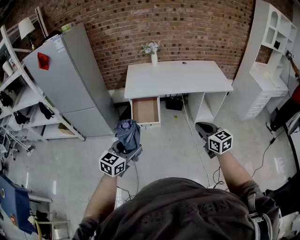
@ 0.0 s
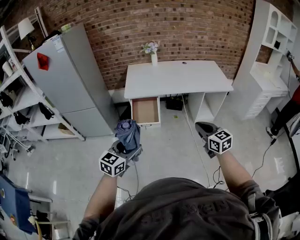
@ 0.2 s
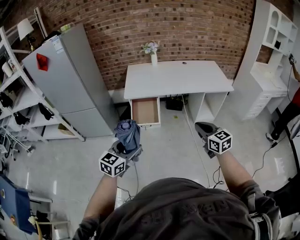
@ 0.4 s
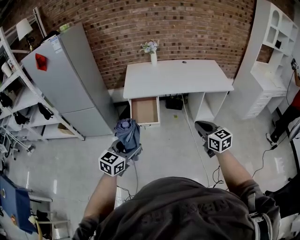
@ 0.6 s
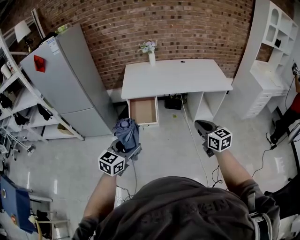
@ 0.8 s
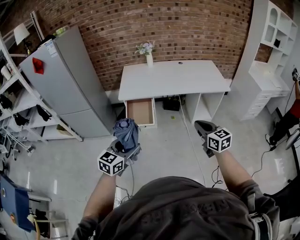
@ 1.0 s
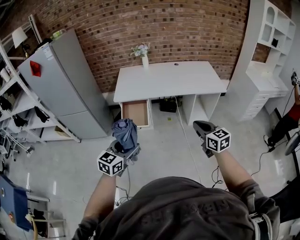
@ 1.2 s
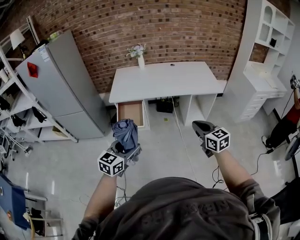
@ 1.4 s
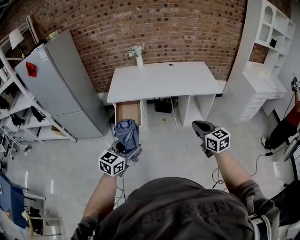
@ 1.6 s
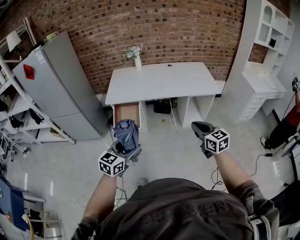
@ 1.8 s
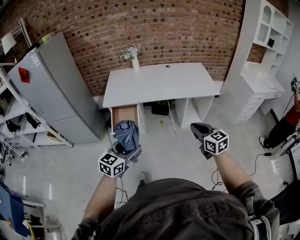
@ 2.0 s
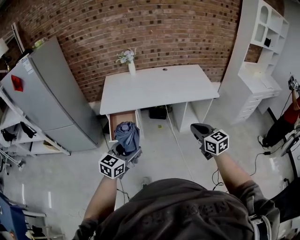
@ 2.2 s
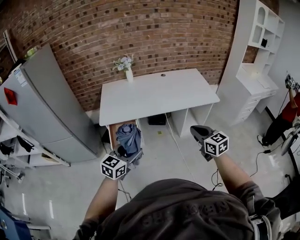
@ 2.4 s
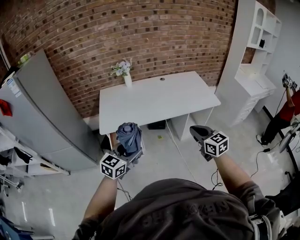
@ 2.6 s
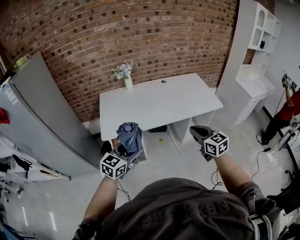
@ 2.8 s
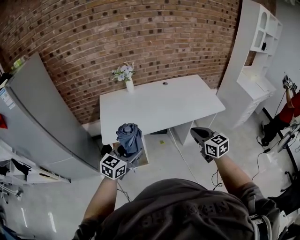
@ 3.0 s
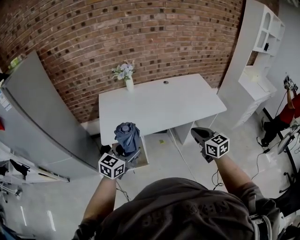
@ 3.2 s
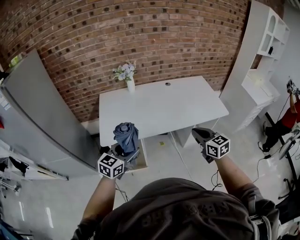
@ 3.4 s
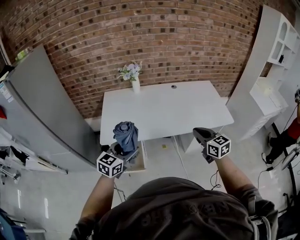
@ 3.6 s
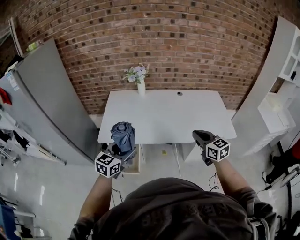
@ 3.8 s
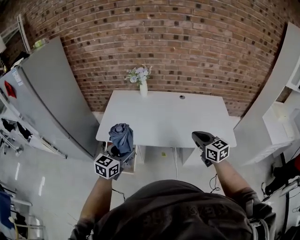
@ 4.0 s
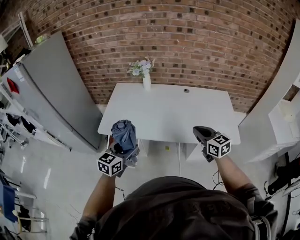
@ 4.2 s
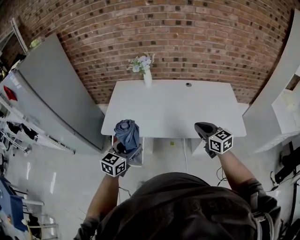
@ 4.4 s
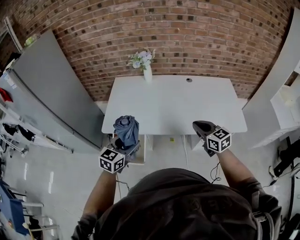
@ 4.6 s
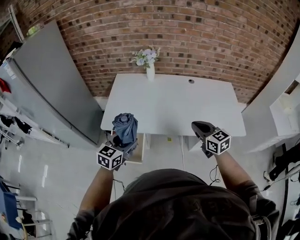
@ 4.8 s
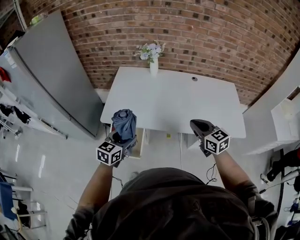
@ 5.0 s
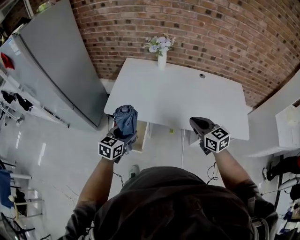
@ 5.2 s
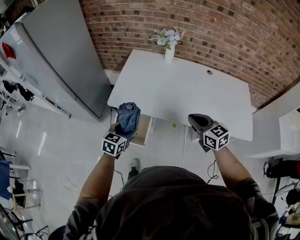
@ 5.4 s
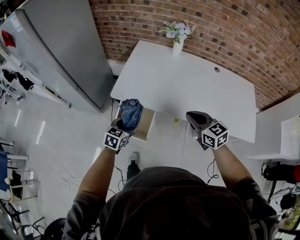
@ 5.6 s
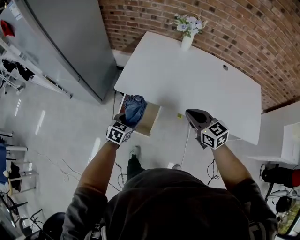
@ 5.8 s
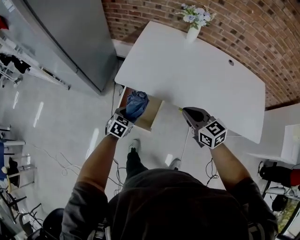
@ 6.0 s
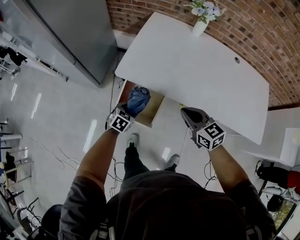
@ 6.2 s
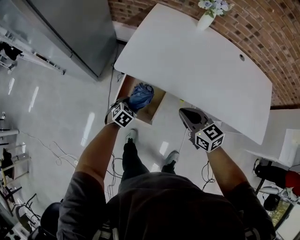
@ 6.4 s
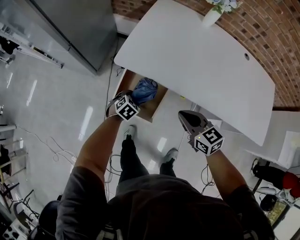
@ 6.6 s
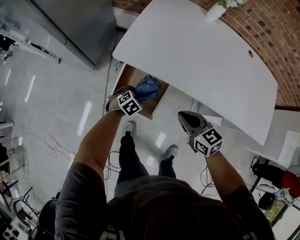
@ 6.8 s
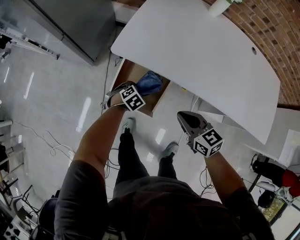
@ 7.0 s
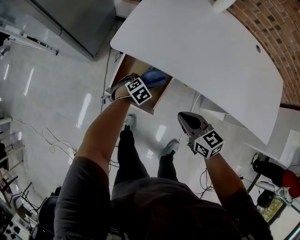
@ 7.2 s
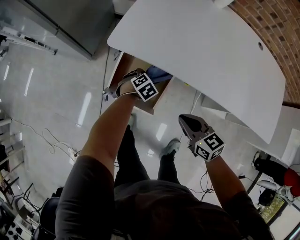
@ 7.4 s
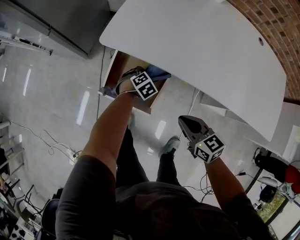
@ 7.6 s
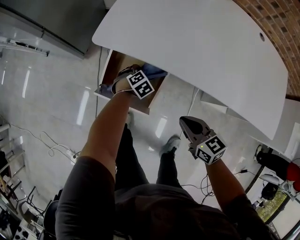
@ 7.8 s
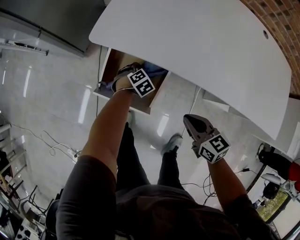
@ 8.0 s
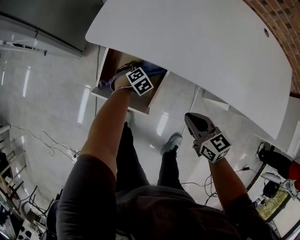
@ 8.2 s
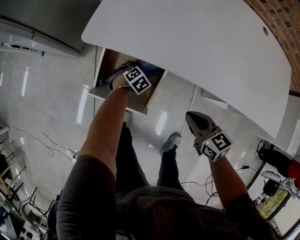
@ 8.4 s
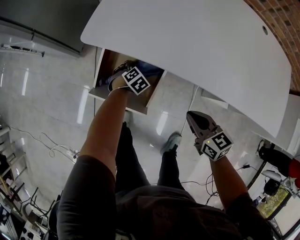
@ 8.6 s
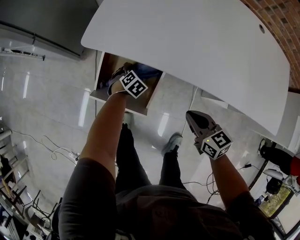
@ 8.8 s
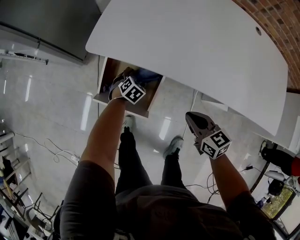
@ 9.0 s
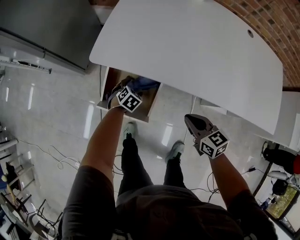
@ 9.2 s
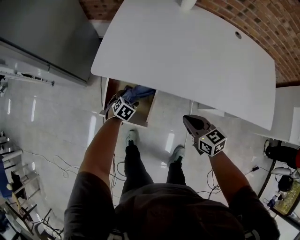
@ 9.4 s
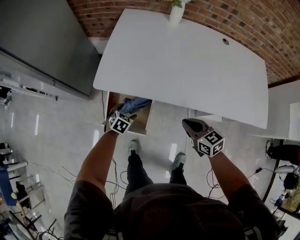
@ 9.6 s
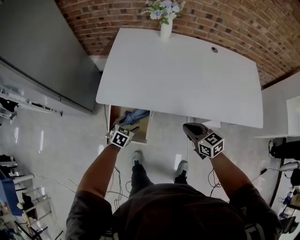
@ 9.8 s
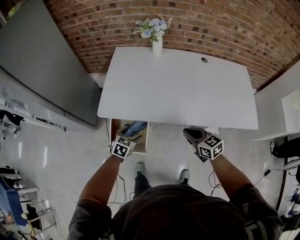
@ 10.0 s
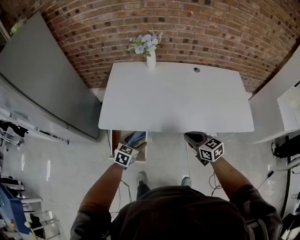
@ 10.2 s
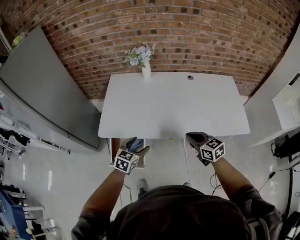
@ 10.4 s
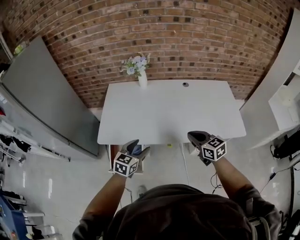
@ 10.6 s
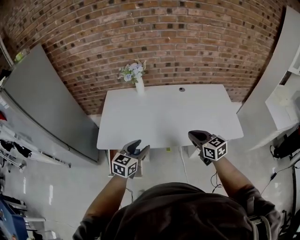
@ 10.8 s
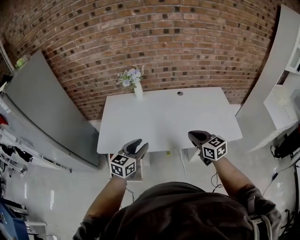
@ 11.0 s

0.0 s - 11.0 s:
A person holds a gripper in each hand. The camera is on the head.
0.0 s - 1.6 s: Both grippers travel together to the right, approximately 20 cm.
1.6 s - 3.2 s: The two grippers go about 35 cm forward and to the left.
3.2 s - 4.8 s: The left gripper moves forward and downward, approximately 10 cm, travels to the right and back again, roughly 15 cm each way, and rotates some 20 degrees, while the right gripper moves forward, about 15 cm, and rotates some 20 degrees.
4.8 s - 6.2 s: The left gripper goes some 35 cm downward and to the left, and points its fingers about 30 degrees further downward. The right gripper heads to the left and downward, covering roughly 25 cm, and changes its angle by about 20 degrees.
6.2 s - 7.8 s: The right gripper moves downward, some 20 cm, while the left gripper travels downward and forward by approximately 25 cm, and changes its angle by roughly 30 degrees.
7.8 s - 9.4 s: The left gripper moves upward, approximately 5 cm. Meanwhile the right gripper shifts about 5 cm to the right.
9.4 s - 11.0 s: The two grippers go about 40 cm upward and to the right. The left gripper points its fingers roughly 50 degrees further upward, and closes. Meanwhile the right gripper turns by some 30 degrees.

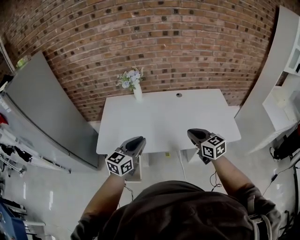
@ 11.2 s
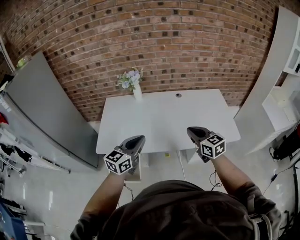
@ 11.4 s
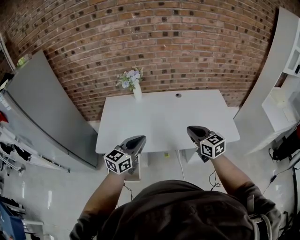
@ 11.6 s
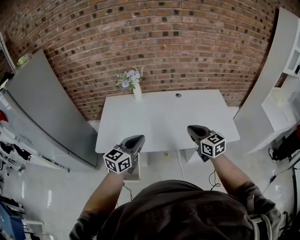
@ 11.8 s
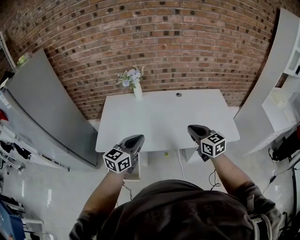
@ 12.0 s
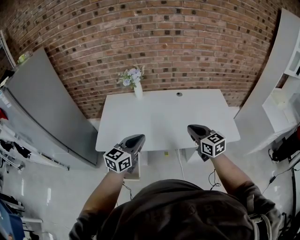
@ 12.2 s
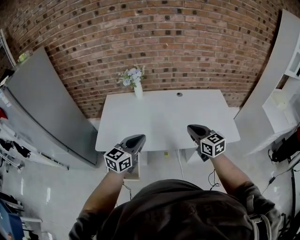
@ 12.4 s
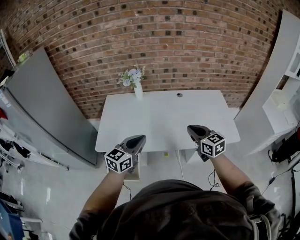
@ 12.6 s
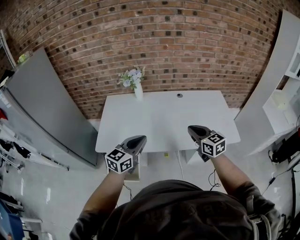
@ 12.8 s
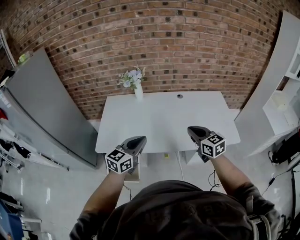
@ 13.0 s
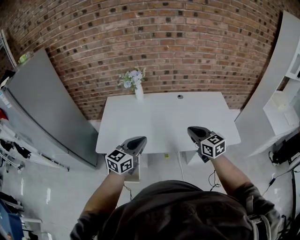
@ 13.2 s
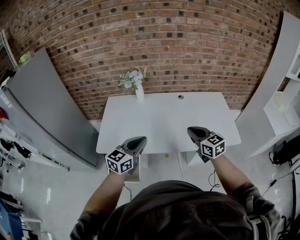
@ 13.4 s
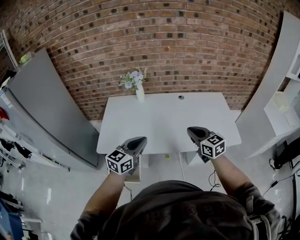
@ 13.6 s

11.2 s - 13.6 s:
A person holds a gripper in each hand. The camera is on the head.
11.2 s - 12.4 s: The grippers stay close to where they were, moving slightly.
12.4 s - 13.6 s: Neither gripper changes place.

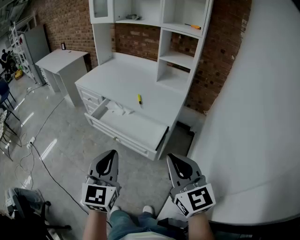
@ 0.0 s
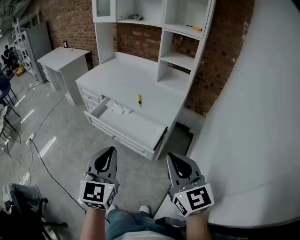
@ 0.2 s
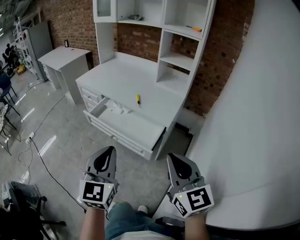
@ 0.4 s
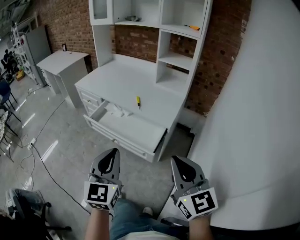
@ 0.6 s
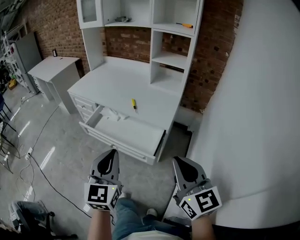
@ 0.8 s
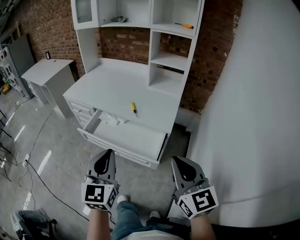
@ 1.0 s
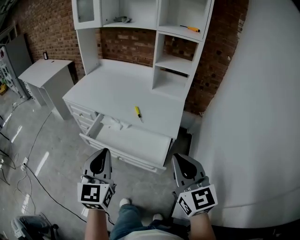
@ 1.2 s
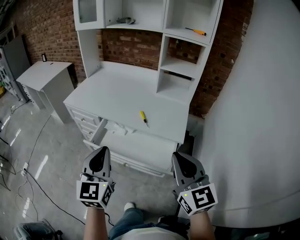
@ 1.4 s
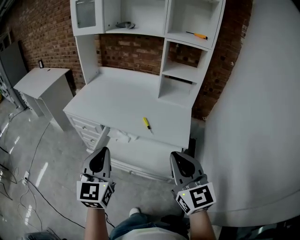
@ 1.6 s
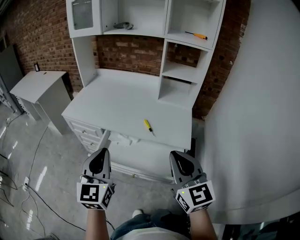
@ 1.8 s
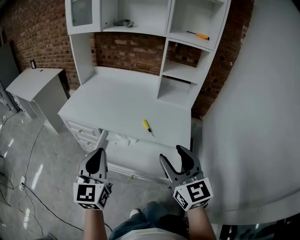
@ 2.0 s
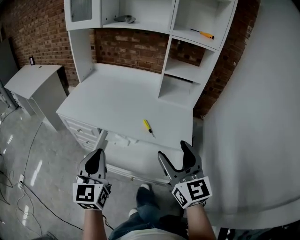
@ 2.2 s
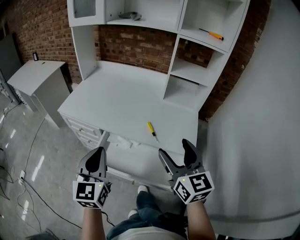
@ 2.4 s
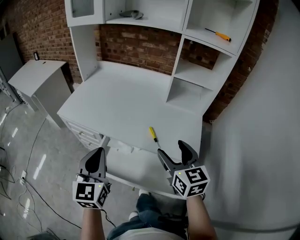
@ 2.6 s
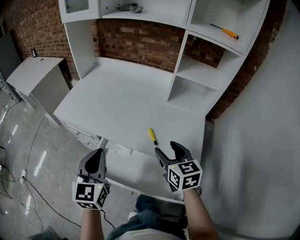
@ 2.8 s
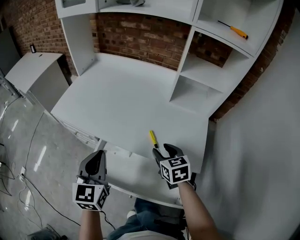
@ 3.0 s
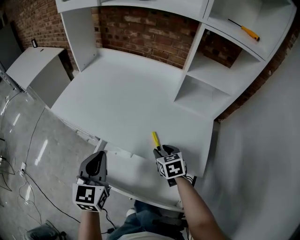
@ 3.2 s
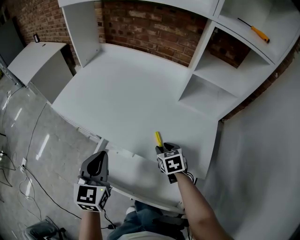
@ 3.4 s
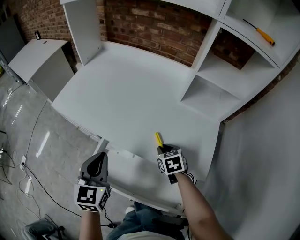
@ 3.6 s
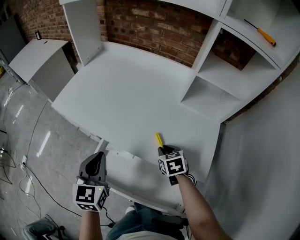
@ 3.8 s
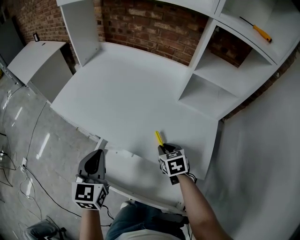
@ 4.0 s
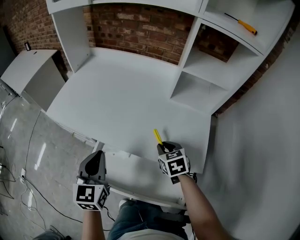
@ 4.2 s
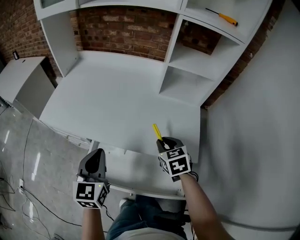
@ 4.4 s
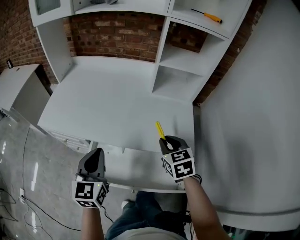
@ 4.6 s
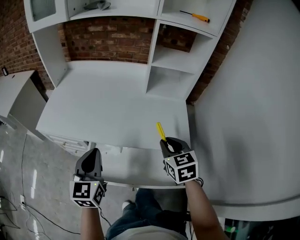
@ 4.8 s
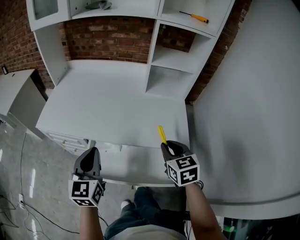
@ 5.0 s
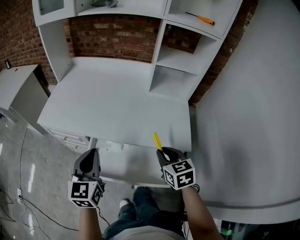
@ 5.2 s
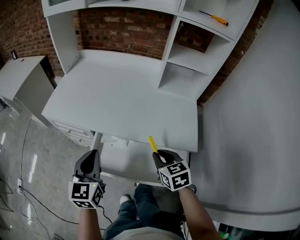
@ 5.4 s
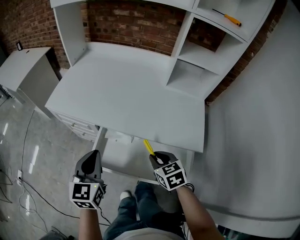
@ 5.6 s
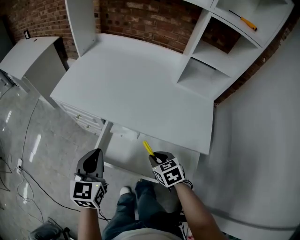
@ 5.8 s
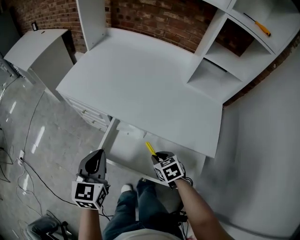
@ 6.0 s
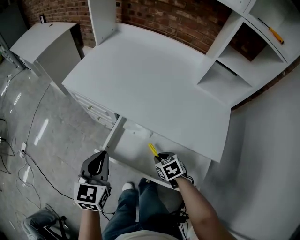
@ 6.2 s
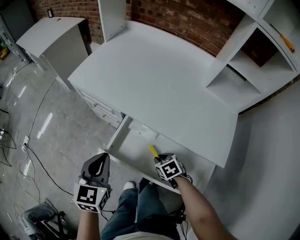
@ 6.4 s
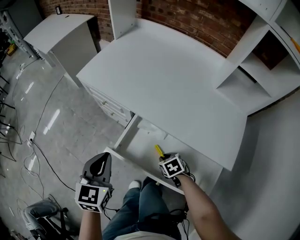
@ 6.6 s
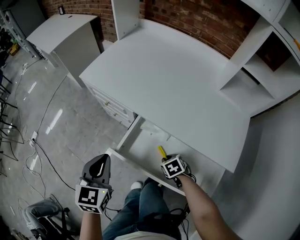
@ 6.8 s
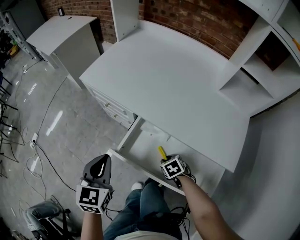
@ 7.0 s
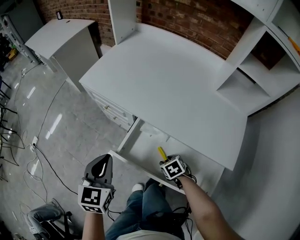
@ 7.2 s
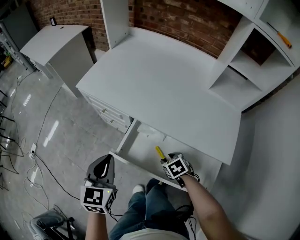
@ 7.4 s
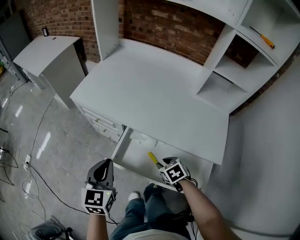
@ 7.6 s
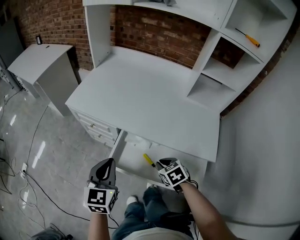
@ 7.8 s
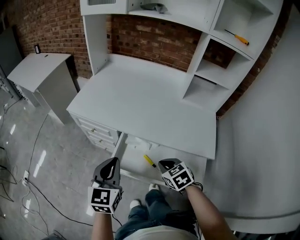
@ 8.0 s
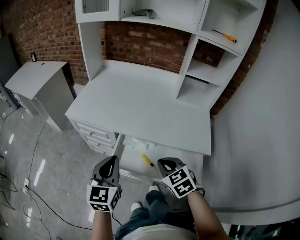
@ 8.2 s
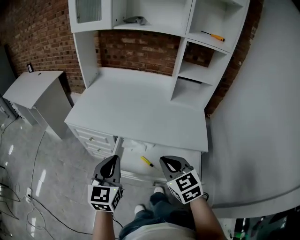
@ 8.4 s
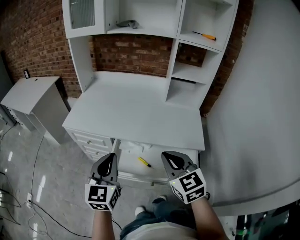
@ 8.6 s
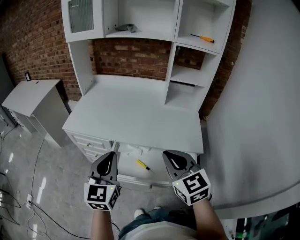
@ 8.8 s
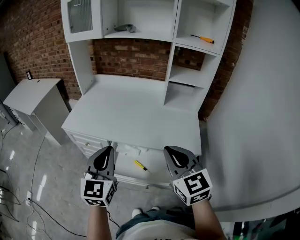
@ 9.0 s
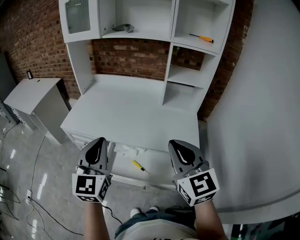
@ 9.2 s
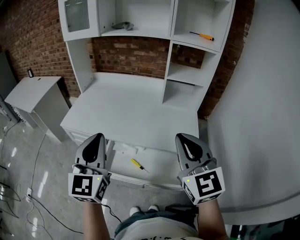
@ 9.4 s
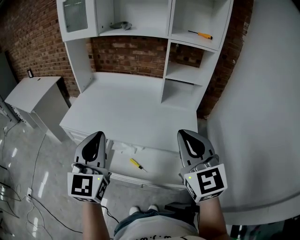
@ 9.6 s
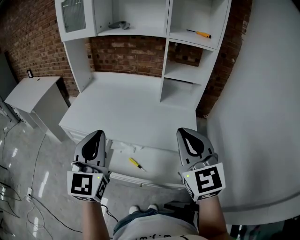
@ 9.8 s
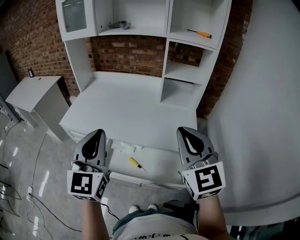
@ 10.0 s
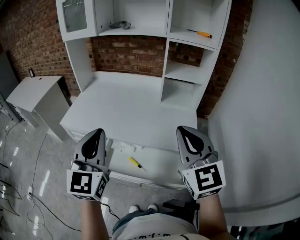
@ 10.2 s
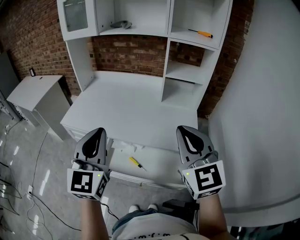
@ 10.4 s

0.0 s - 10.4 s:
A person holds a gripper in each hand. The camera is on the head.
0.0 s - 1.4 s: The two grippers go about 20 cm forward and to the left.
1.4 s - 3.0 s: The right gripper shifts about 40 cm forward and downward, angles its fingers downward, by roughly 30 degrees, and opens, while the left gripper is displaced forward by approximately 25 cm.
3.0 s - 4.4 s: The right gripper moves some 10 cm downward and comes back, and closes up.
4.4 s - 6.0 s: The right gripper goes approximately 20 cm downward, to the left and backward, and changes its angle by about 20 degrees, while the left gripper heads to the left and backward, covering some 10 cm.
6.0 s - 7.4 s: The left gripper goes some 5 cm to the left. Meanwhile the right gripper moves downward, about 5 cm.
7.4 s - 9.0 s: The left gripper is displaced upward and to the right by about 20 cm, and turns by some 30 degrees. Meanwhile the right gripper travels upward by some 40 cm, angles its fingers upward, by about 60 degrees, and closes up.
9.0 s - 10.4 s: The left gripper heads upward, covering some 10 cm; the right gripper travels to the right and upward by approximately 10 cm.
